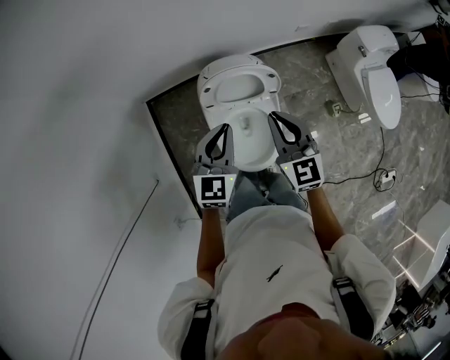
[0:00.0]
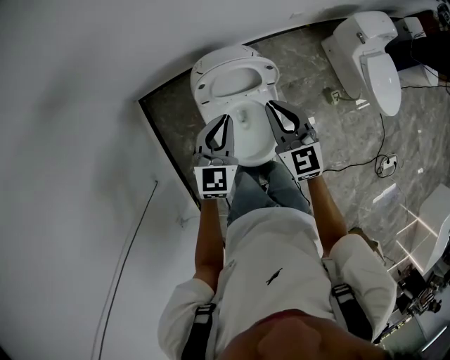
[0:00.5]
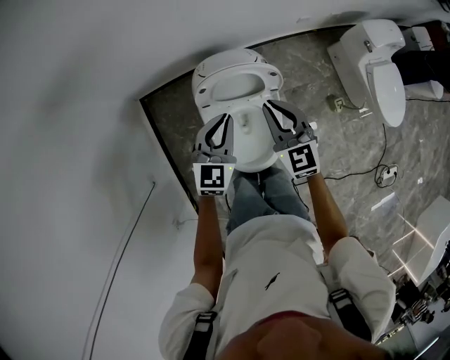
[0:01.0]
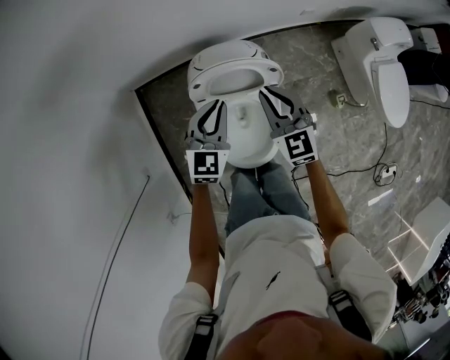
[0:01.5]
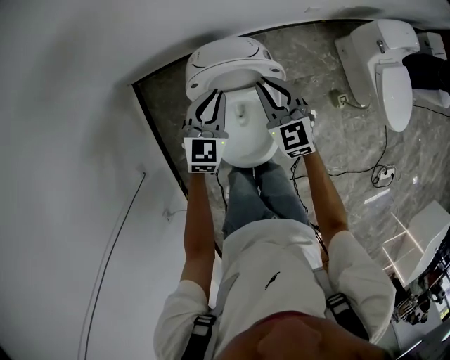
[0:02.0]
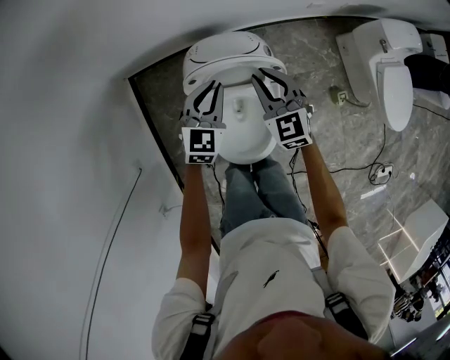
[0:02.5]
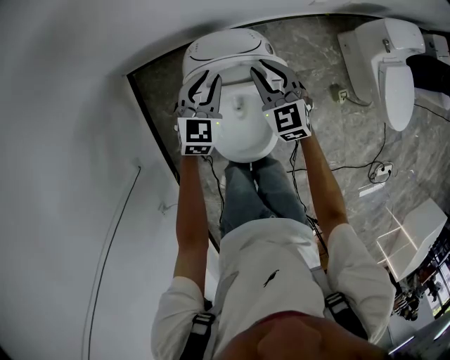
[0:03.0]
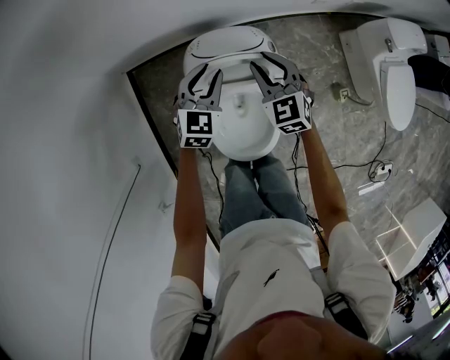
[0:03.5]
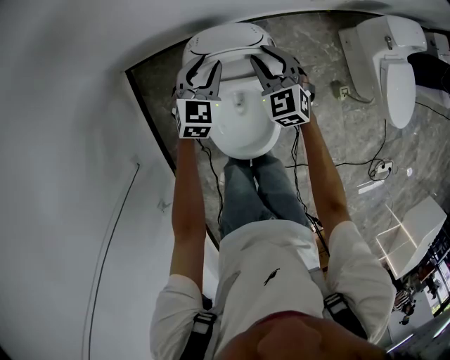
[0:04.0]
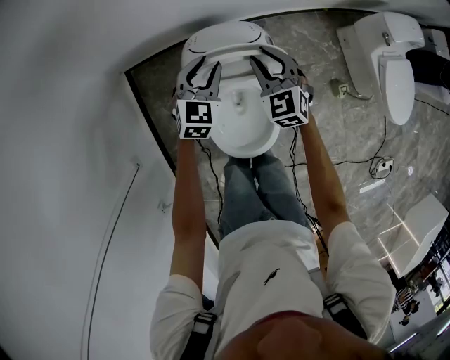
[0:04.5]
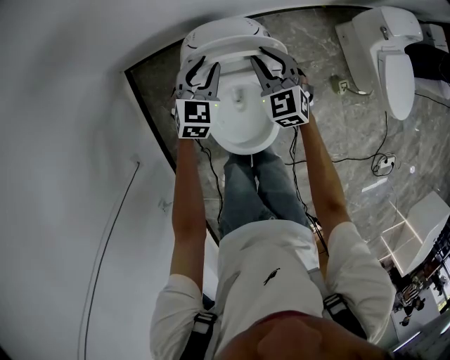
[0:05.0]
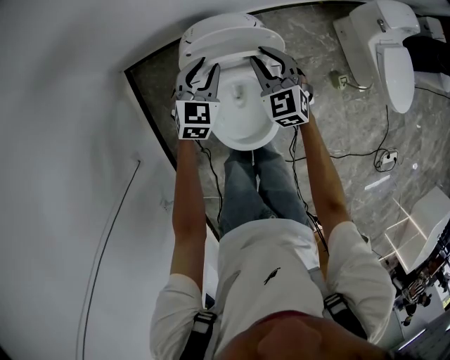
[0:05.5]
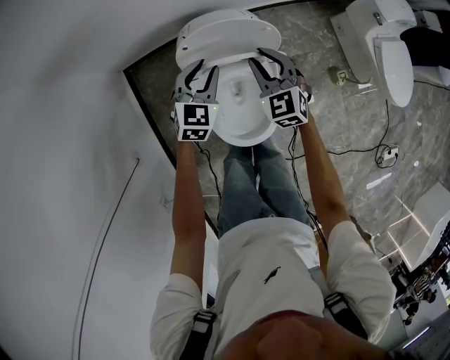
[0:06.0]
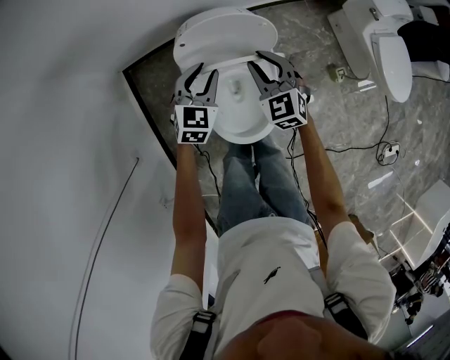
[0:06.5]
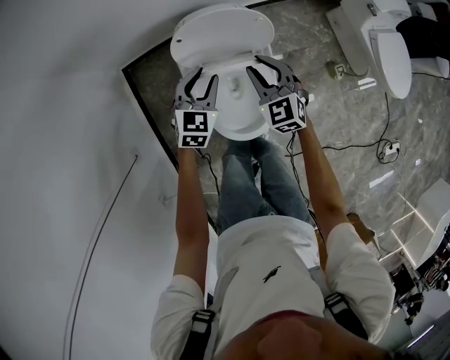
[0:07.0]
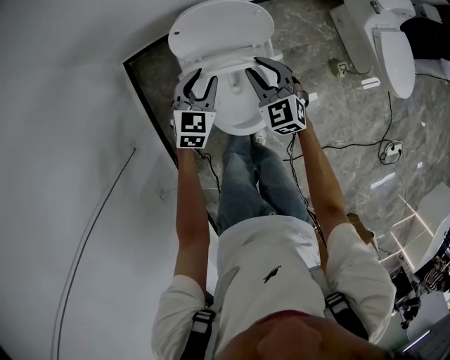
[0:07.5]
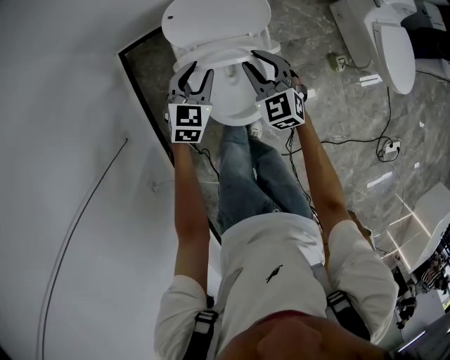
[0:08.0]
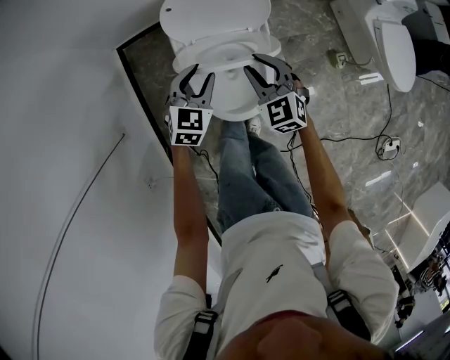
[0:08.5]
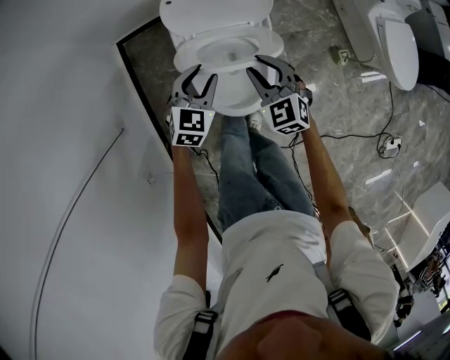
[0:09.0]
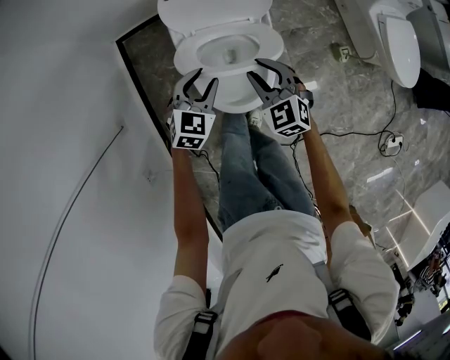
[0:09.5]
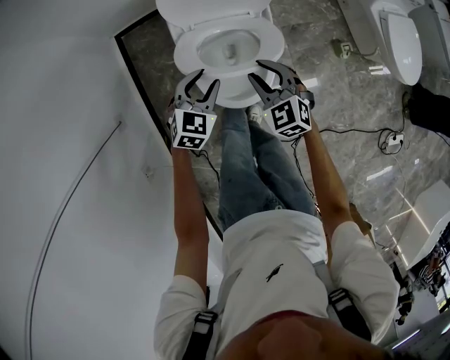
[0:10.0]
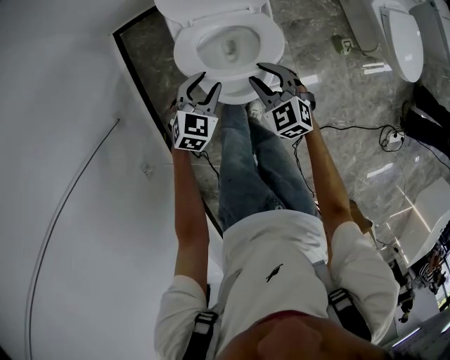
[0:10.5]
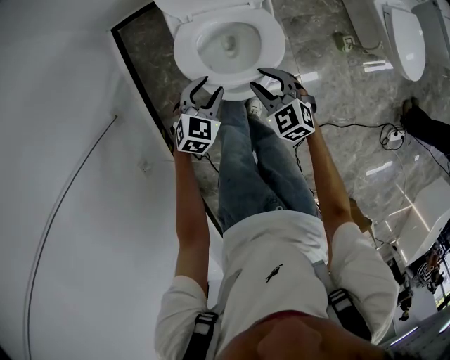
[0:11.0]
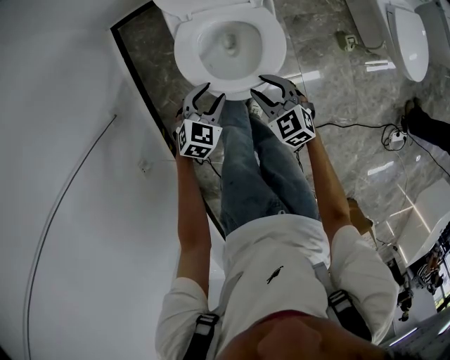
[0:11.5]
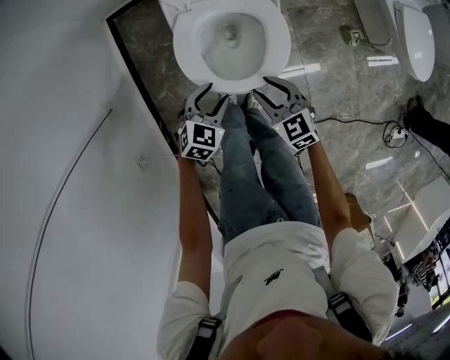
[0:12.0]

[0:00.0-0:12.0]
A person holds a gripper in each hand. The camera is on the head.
0:00.0 to 0:02.0: Both grippers travel together downward and forward, some 20 cm.
0:02.0 to 0:04.0: The grippers both shift downward and forward by approximately 10 cm. The right gripper opens its fingers. The left gripper opens its fingers.
0:04.0 to 0:06.0: Both grippers move backward, roughly 10 cm.
0:06.0 to 0:08.0: Both grippers move backward, some 10 cm.
0:08.0 to 0:10.0: Both grippers move backward and downward, roughly 10 cm.
0:10.0 to 0:12.0: The grippers both shift backward and downward by about 10 cm.

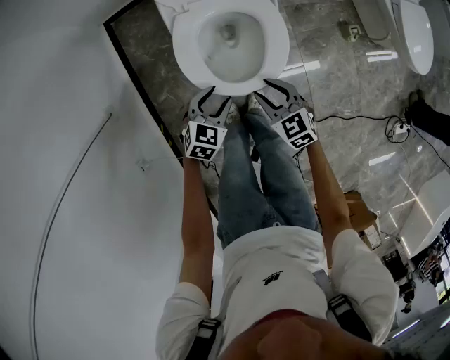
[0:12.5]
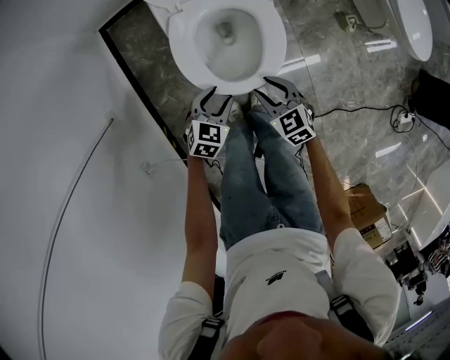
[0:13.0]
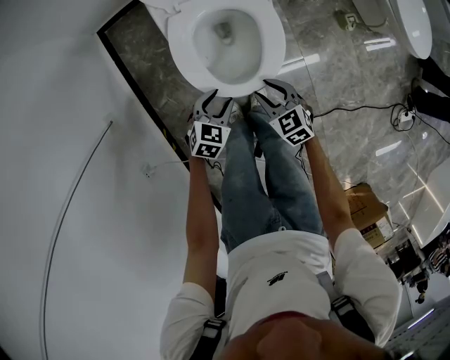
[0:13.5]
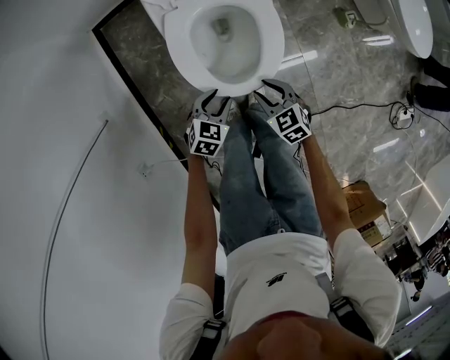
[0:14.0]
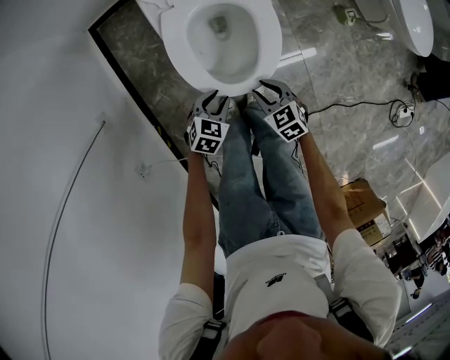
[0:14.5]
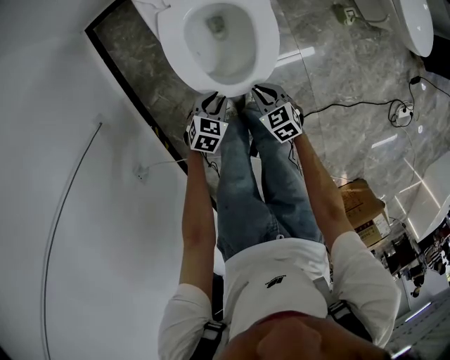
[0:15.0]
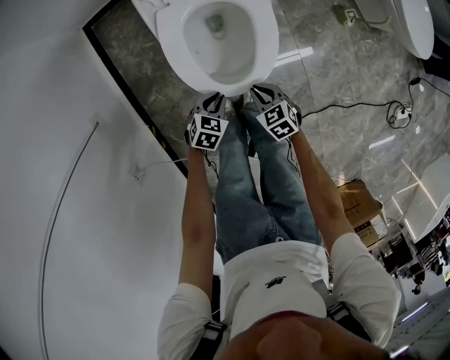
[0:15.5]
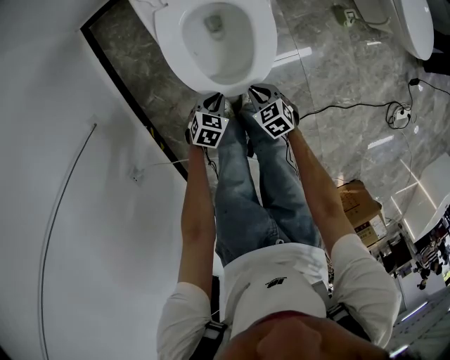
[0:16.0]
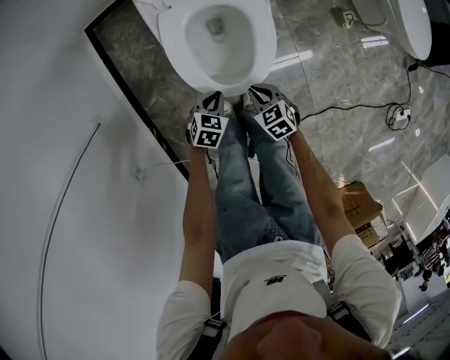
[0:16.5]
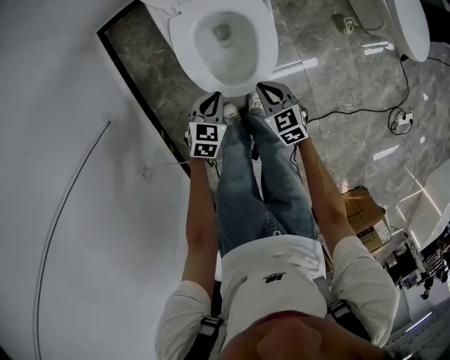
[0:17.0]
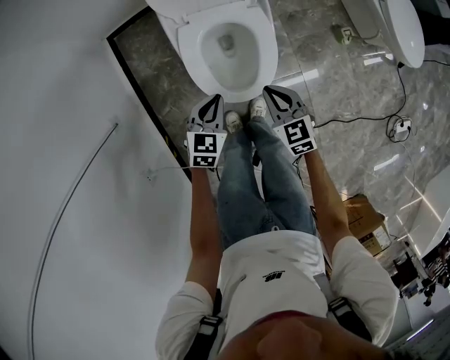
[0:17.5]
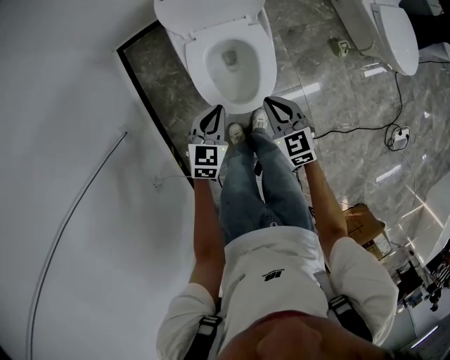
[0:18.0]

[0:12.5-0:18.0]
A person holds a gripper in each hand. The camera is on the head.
0:12.5 to 0:14.5: Both grippers move downward, roughly 10 cm.
0:14.5 to 0:16.0: Both grippers travel together downward, about 5 cm. The left gripper closes up. The right gripper closes up.
0:16.0 to 0:18.0: Both grippers travel together upward, some 25 cm. The left gripper swivels approximately 30 degrees. The right gripper changes its angle by about 30 degrees.

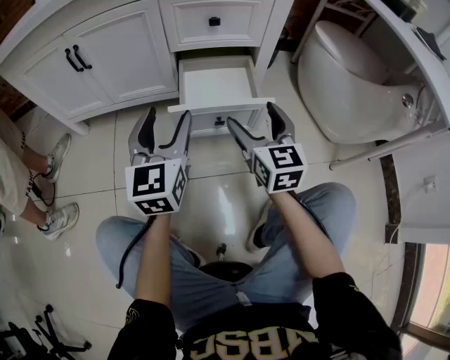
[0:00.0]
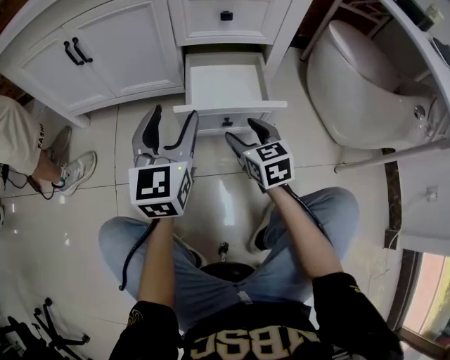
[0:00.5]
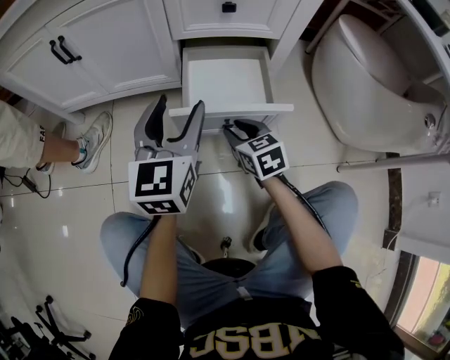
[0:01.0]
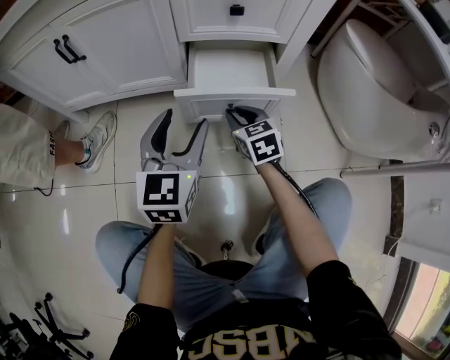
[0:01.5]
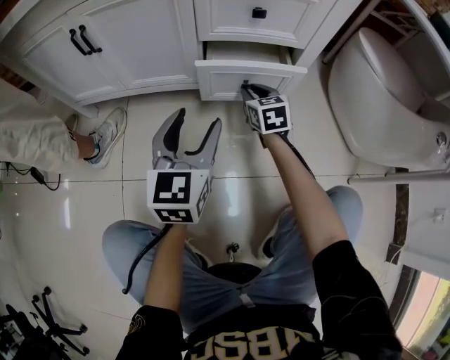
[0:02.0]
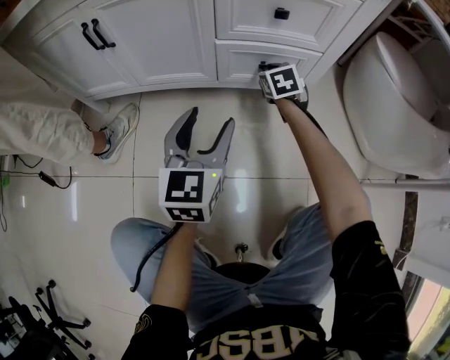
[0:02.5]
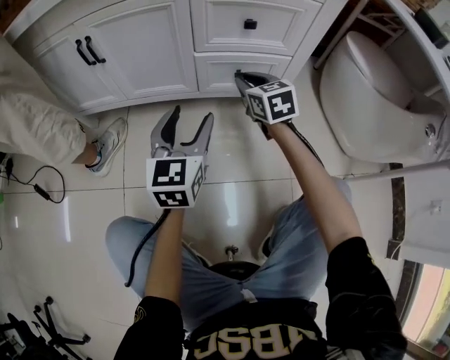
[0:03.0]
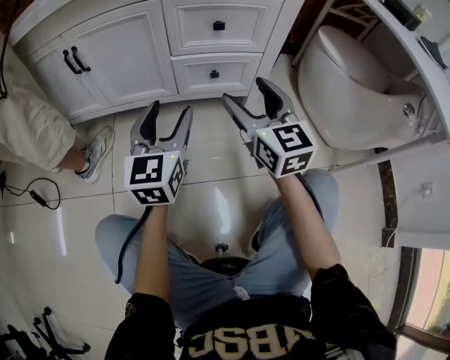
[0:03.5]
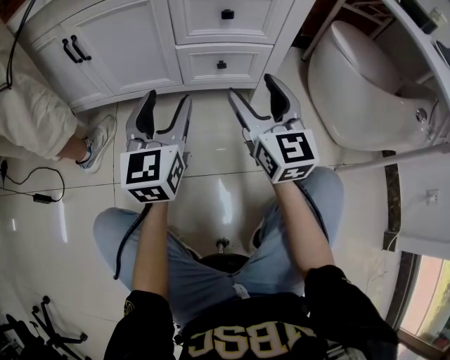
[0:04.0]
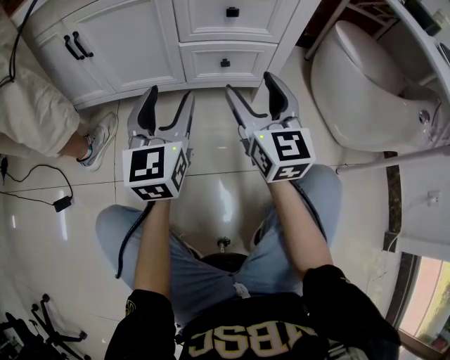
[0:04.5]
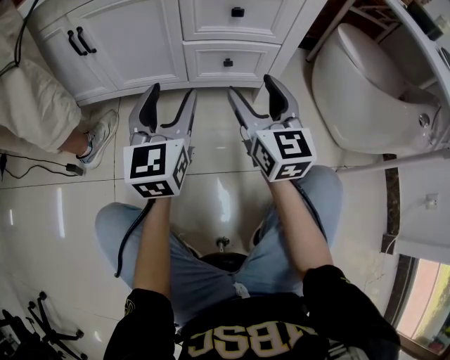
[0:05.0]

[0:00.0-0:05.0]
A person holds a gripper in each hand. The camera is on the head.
0:00.0 to 0:02.5: The right gripper goes about 30 cm forward and downward, tips its fingers downward by about 30 degrees, and closes its fingers. Meanwhile the left gripper travels downward and forward by some 10 cm.
0:02.5 to 0:05.0: The left gripper goes approximately 5 cm upward. The right gripper goes approximately 30 cm backward and upward, angles its fingers upward, by roughly 40 degrees, and opens up.

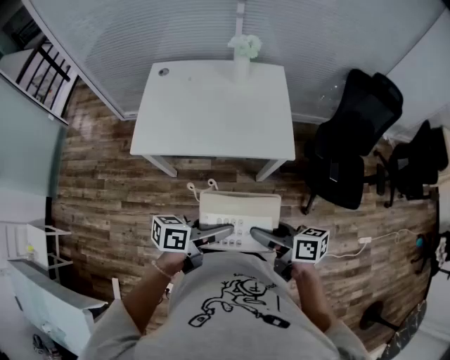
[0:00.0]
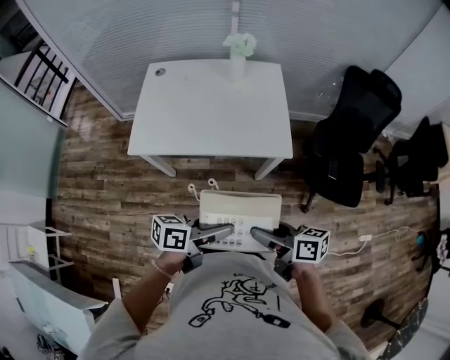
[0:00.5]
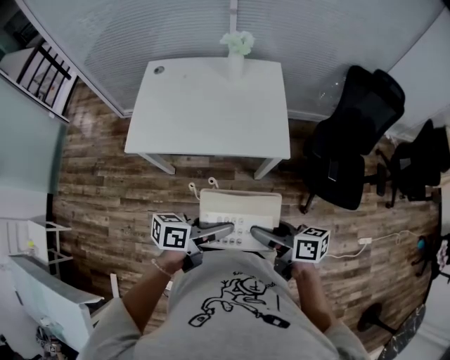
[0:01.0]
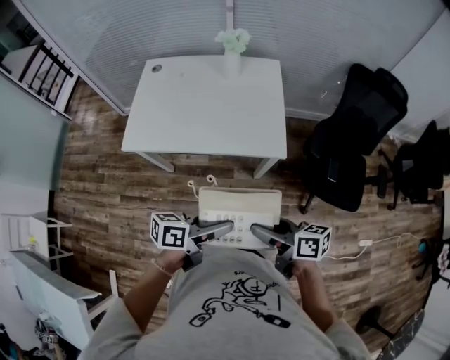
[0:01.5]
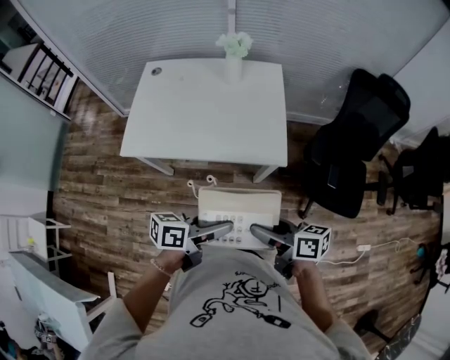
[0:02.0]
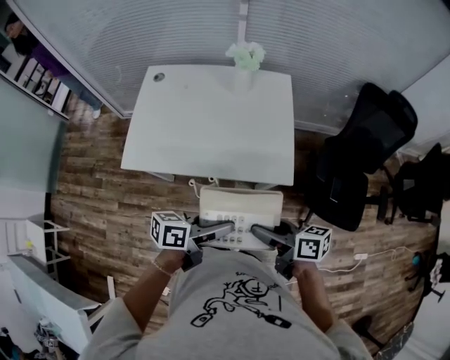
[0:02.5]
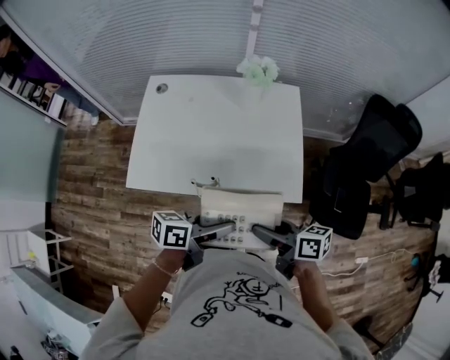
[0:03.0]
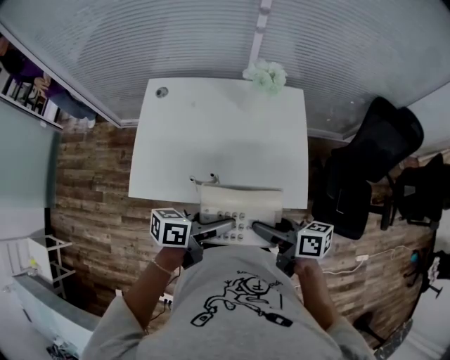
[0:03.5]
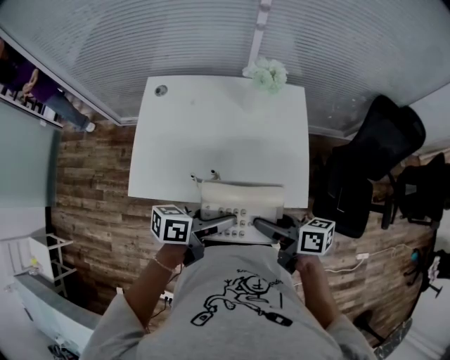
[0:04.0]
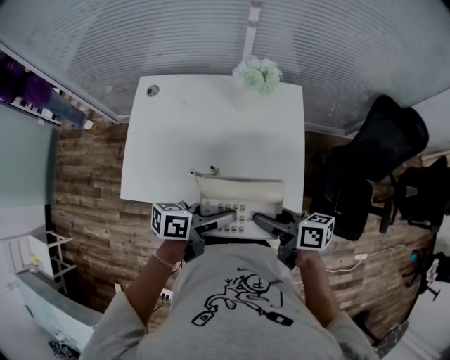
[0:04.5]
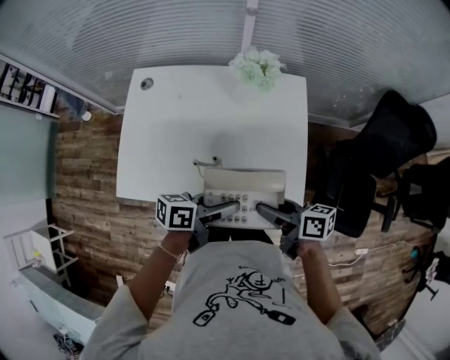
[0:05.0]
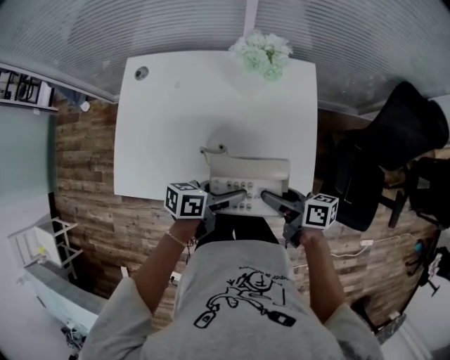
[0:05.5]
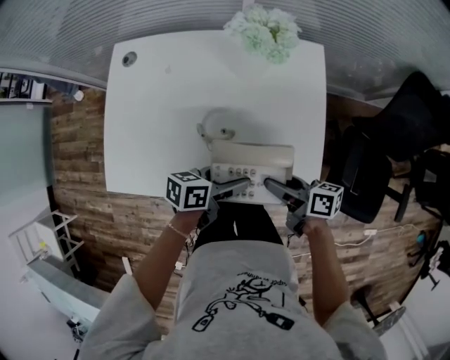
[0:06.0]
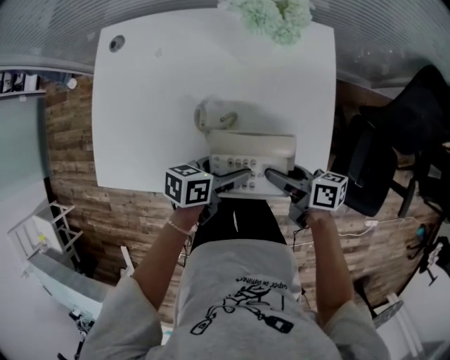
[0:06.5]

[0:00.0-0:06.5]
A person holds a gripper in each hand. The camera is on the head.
0:00.0 to 0:02.0: The two grippers go about 10 cm to the right and forward.
0:02.0 to 0:04.5: The right gripper ends up roughly 25 cm from where it was. Meanwhile the left gripper ends up about 25 cm from where it was.
0:04.5 to 0:06.5: The grippers both shift downward by approximately 20 cm.
